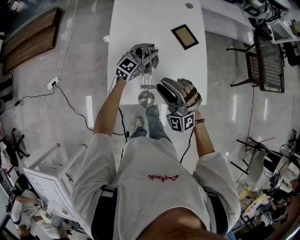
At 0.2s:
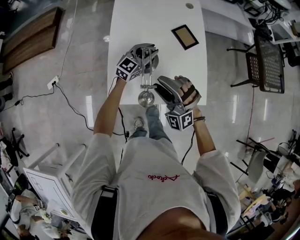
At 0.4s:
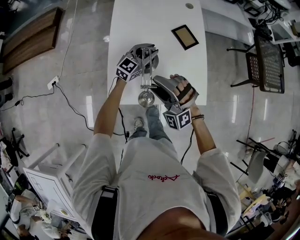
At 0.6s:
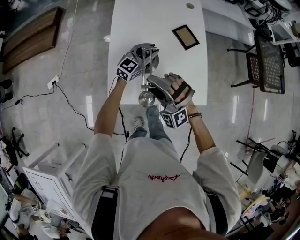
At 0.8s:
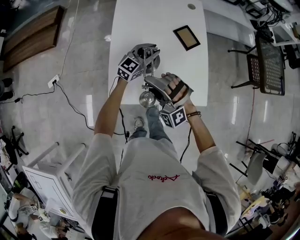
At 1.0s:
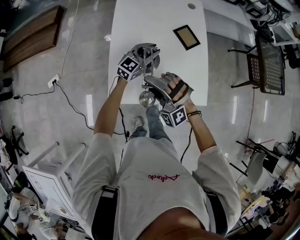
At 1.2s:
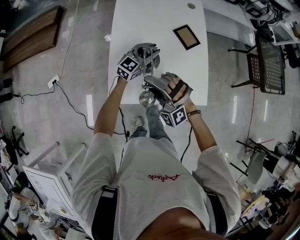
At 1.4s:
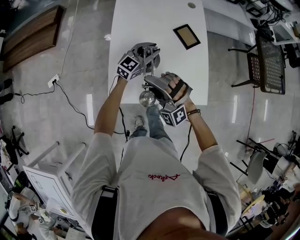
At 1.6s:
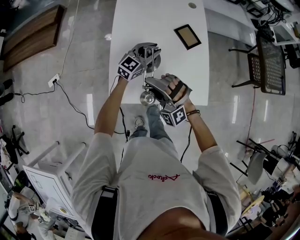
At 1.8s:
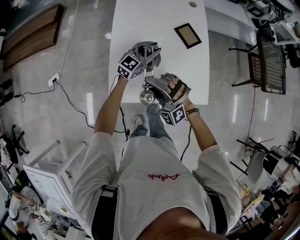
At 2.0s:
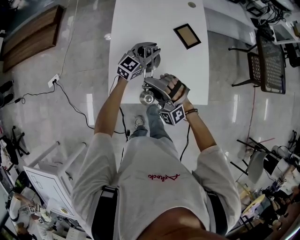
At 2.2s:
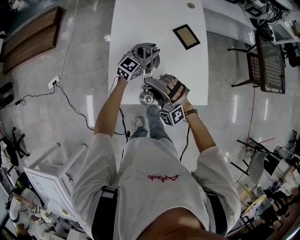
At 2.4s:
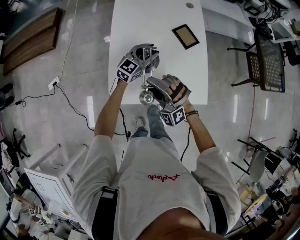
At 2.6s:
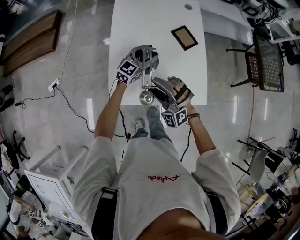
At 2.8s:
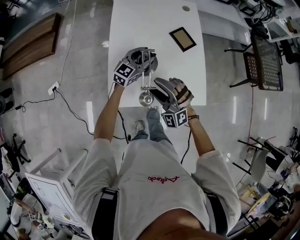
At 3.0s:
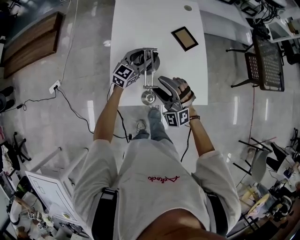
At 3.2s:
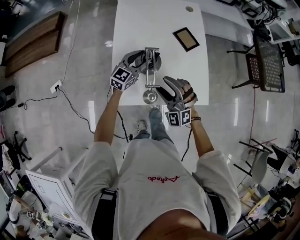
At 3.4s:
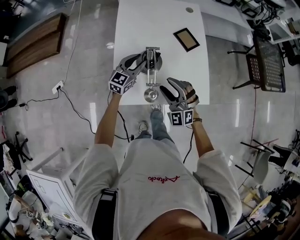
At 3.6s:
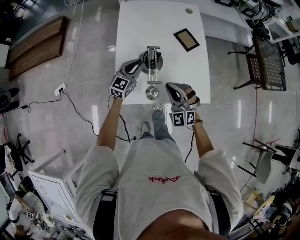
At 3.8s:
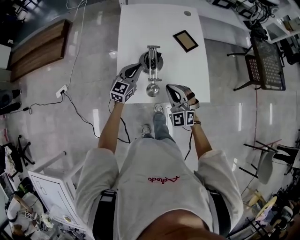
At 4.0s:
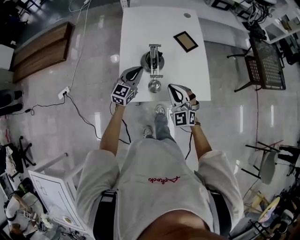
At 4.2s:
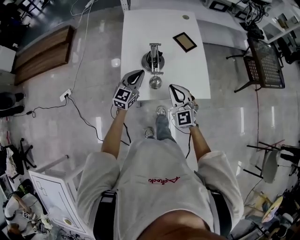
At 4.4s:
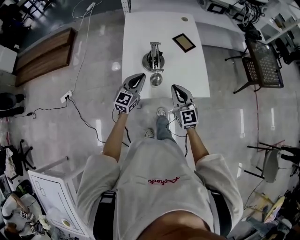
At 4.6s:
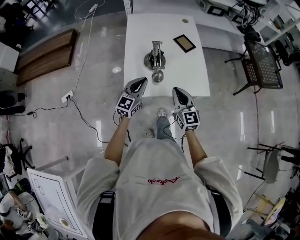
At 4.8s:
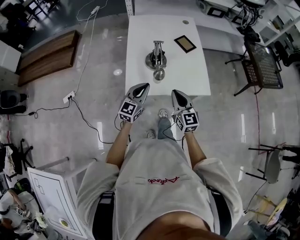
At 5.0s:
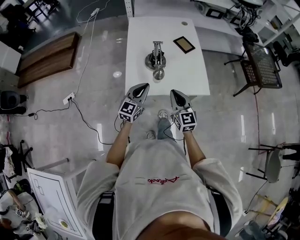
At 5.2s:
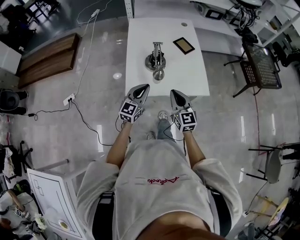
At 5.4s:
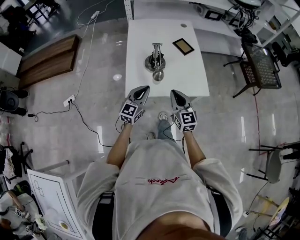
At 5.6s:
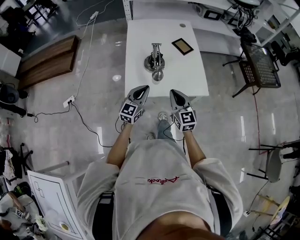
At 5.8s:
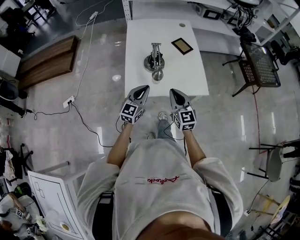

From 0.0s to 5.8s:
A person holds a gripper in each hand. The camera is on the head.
From 0.0s to 1.4s: The right gripper moves to the left, roughly 5 cm.
From 1.4s to 2.8s: There are only small adjustments of the grippers.
From 2.8s to 4.4s: The left gripper is displaced backward by approximately 20 cm, and closes its fingers; the right gripper goes approximately 10 cm backward and to the right, rotates around the line of its fingers by some 60 degrees, clockwise from behind, and closes up.
From 4.4s to 5.8s: The left gripper is displaced backward by some 10 cm.

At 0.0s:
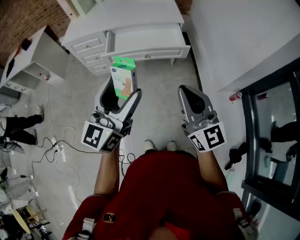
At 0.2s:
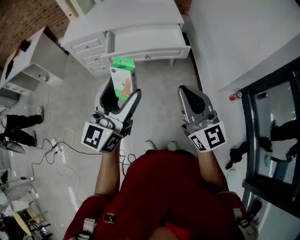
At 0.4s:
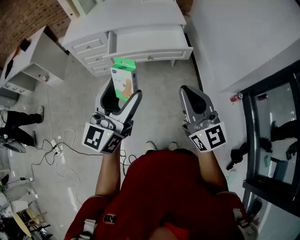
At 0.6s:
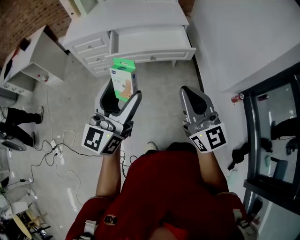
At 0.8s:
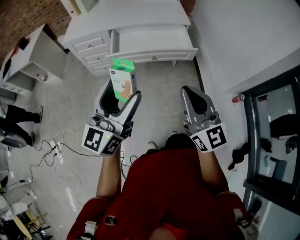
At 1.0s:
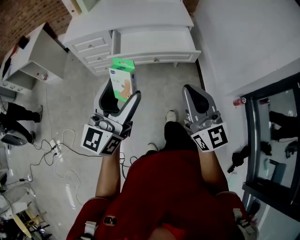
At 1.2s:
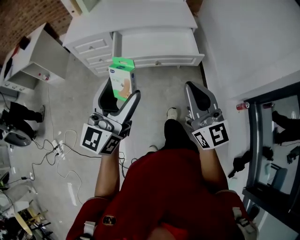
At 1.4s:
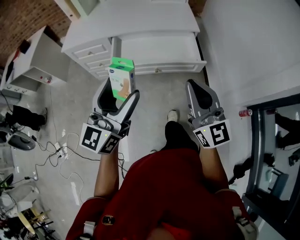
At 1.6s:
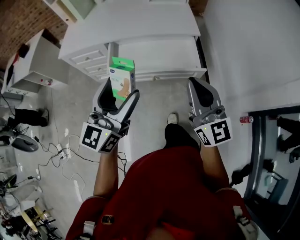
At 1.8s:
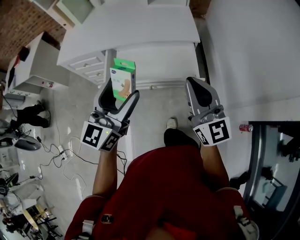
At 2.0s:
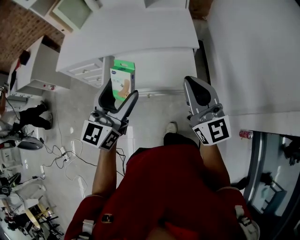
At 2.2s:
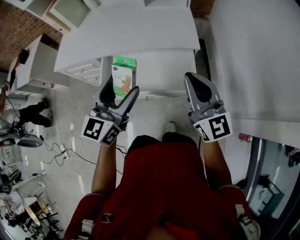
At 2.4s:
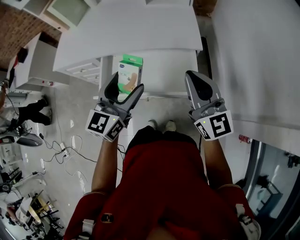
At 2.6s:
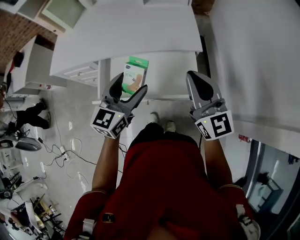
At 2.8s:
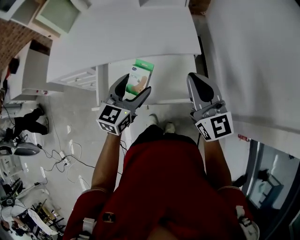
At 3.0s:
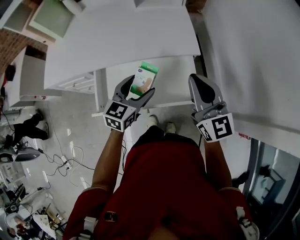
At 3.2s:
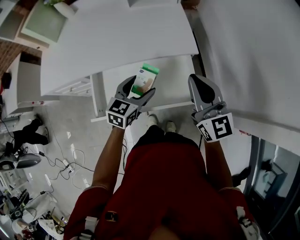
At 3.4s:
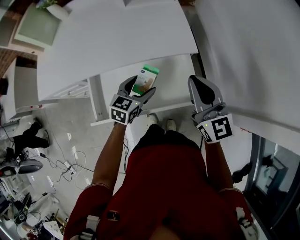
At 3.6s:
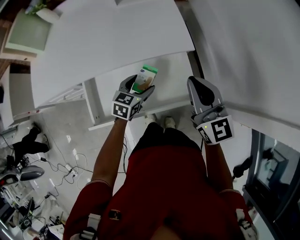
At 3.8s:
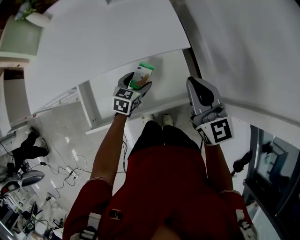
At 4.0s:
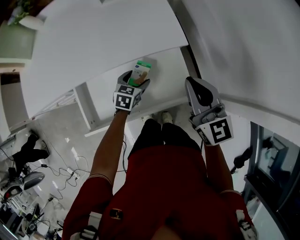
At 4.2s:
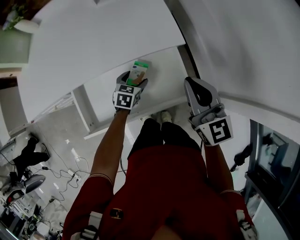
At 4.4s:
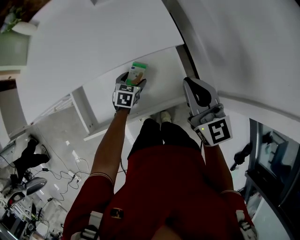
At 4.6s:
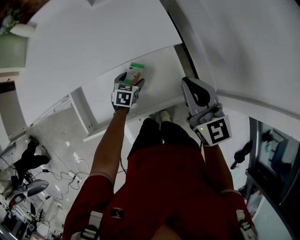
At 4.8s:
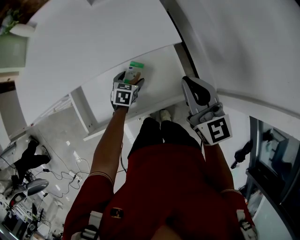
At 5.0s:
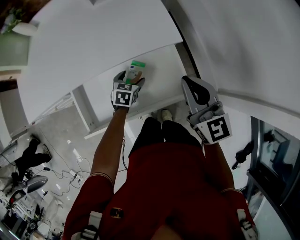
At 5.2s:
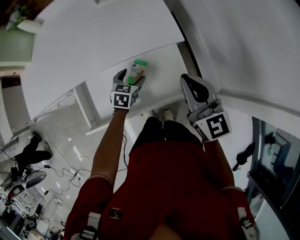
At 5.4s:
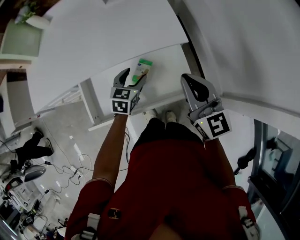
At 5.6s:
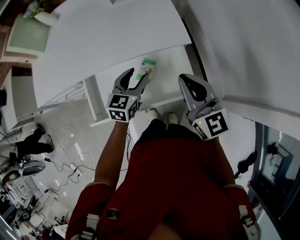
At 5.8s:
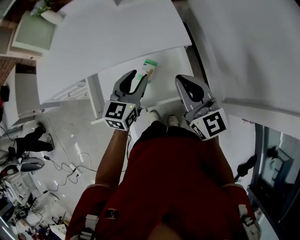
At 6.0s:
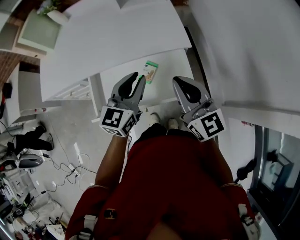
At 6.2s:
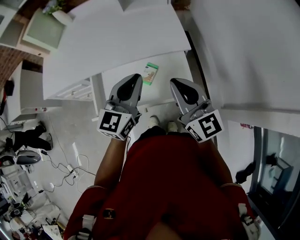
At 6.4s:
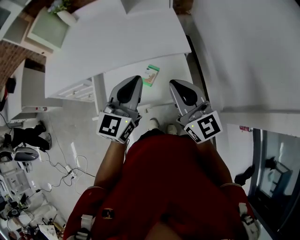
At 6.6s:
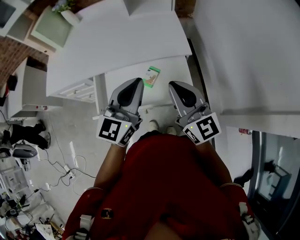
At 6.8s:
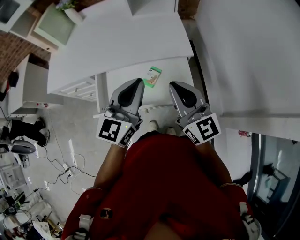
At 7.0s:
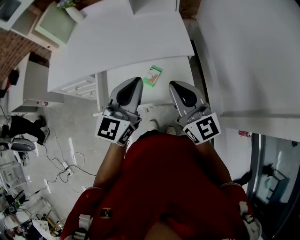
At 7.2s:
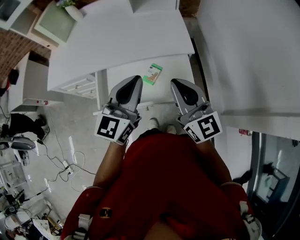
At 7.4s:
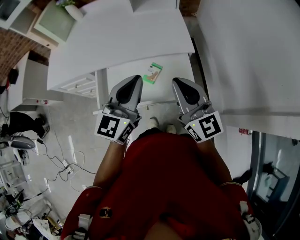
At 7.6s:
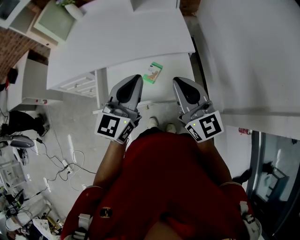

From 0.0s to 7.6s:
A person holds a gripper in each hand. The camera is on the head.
From 0.0s to 1.6s: Both grippers move forward, approximately 25 cm.
From 1.6s to 3.0s: The left gripper heads forward and downward, covering about 35 cm, and turns by approximately 30 degrees, while the right gripper goes some 25 cm forward.
From 3.0s to 4.6s: The right gripper heads downward, covering some 5 cm. The left gripper shifts about 25 cm downward, and turns by some 30 degrees.
From 4.6s to 6.0s: The left gripper travels upward by about 30 cm, tips its fingers upward by roughly 40 degrees, and closes. The right gripper goes some 5 cm backward.
From 6.0s to 7.6s: The left gripper goes about 10 cm upward and backward.

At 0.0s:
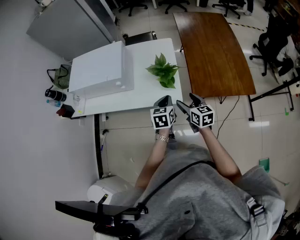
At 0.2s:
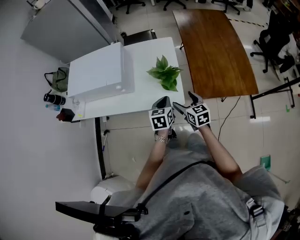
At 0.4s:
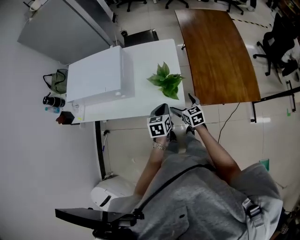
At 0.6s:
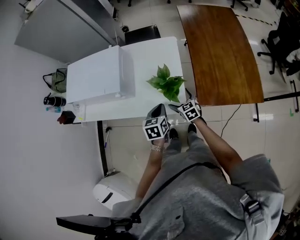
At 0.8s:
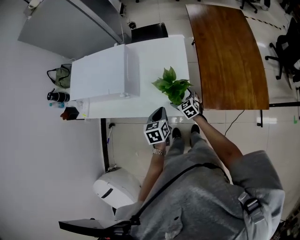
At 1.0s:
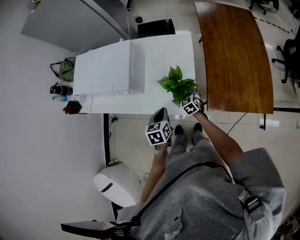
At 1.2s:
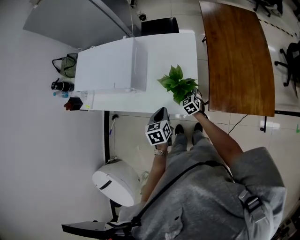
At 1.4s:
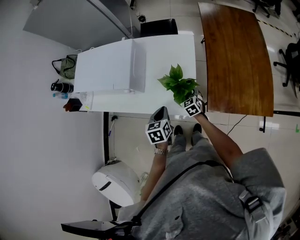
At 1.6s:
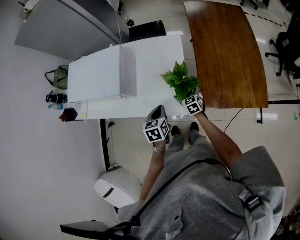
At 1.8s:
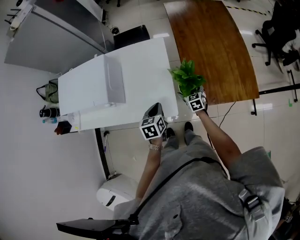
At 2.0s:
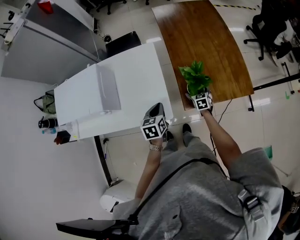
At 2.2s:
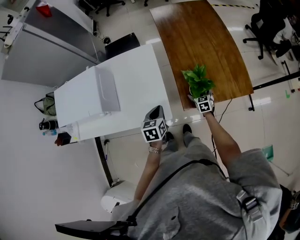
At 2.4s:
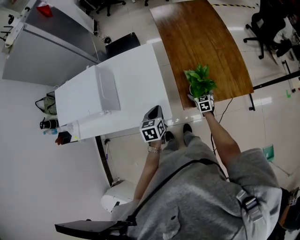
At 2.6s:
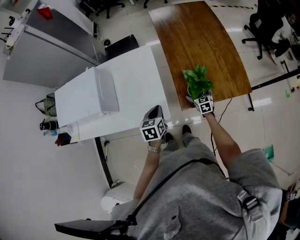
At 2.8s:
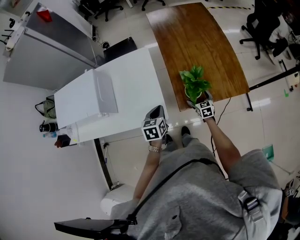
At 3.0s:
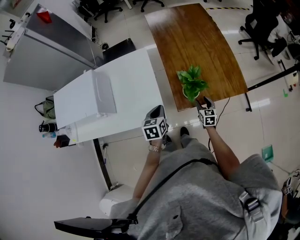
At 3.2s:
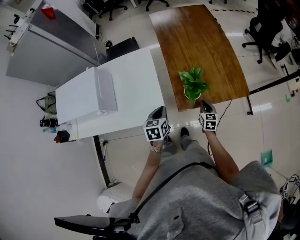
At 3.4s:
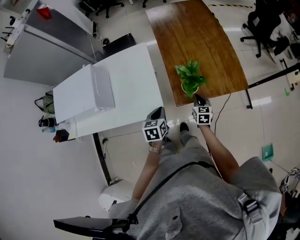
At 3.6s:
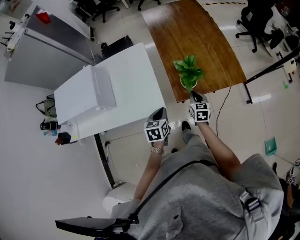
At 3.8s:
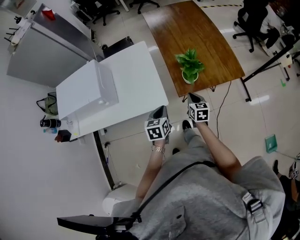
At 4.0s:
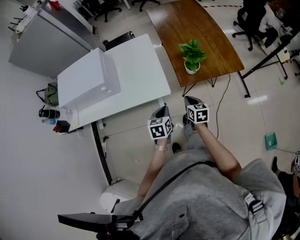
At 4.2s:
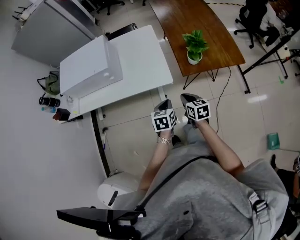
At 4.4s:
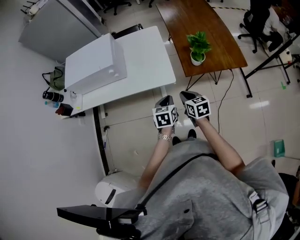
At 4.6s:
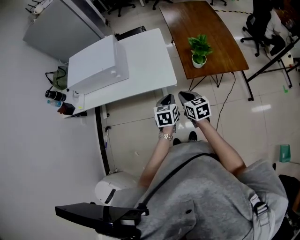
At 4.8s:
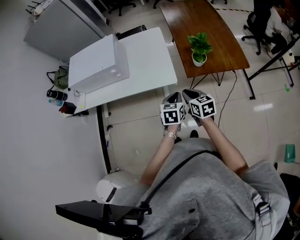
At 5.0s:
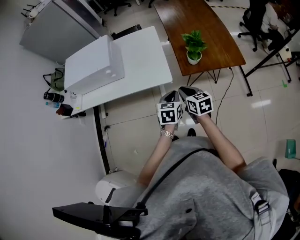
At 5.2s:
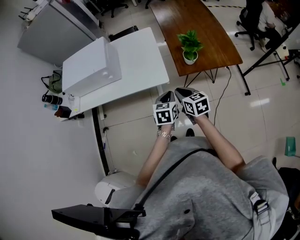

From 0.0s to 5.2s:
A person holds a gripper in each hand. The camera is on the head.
From 0.0s to 1.8s: The right gripper heads forward, downward and to the right, covering approximately 30 cm, changes its angle by some 20 degrees, and opens up, while the left gripper is displaced forward by approximately 10 cm.
From 1.8s to 3.4s: The left gripper shifts about 10 cm to the right. The right gripper shifts some 20 cm to the right and backward, swivels approximately 20 degrees, and closes.
From 3.4s to 5.2s: The left gripper travels backward by roughly 20 cm, while the right gripper travels backward, to the left and upward by about 35 cm, and turns by some 30 degrees.

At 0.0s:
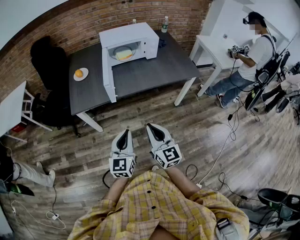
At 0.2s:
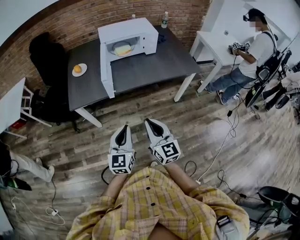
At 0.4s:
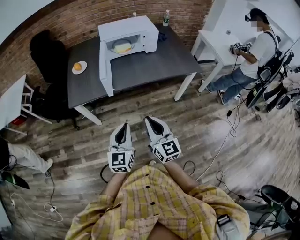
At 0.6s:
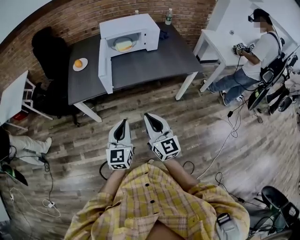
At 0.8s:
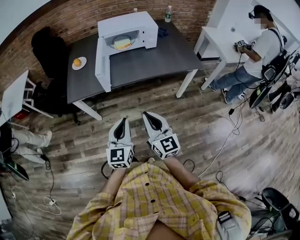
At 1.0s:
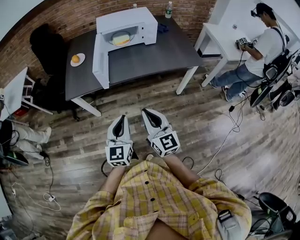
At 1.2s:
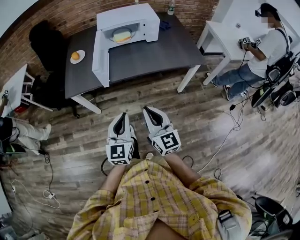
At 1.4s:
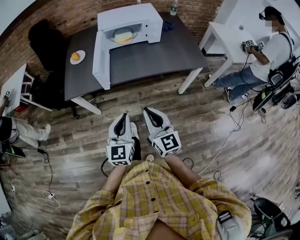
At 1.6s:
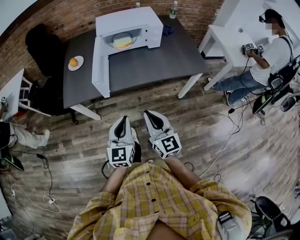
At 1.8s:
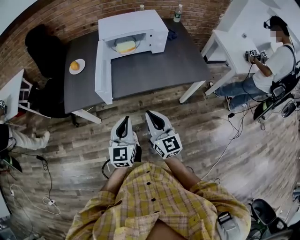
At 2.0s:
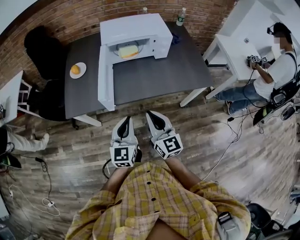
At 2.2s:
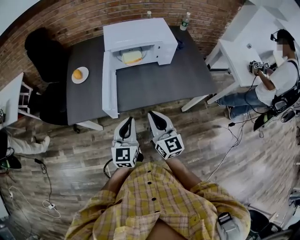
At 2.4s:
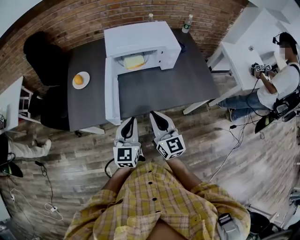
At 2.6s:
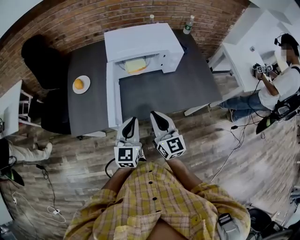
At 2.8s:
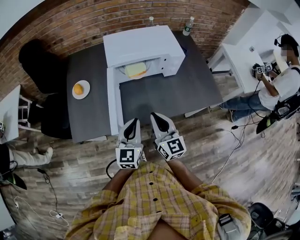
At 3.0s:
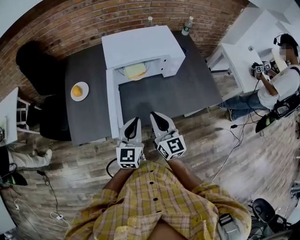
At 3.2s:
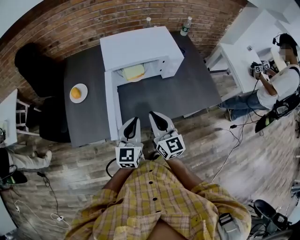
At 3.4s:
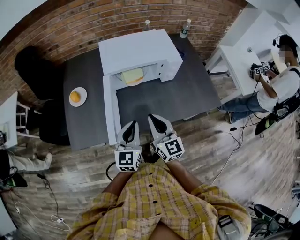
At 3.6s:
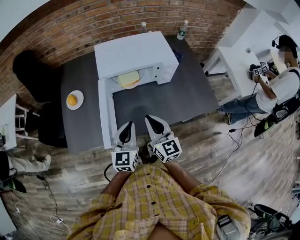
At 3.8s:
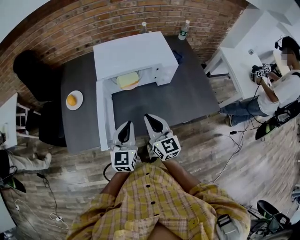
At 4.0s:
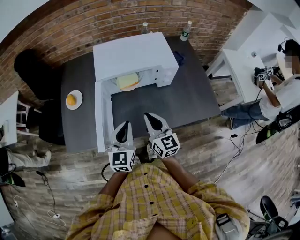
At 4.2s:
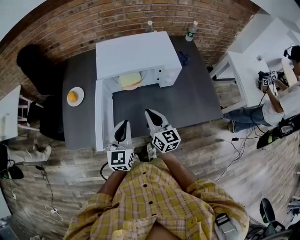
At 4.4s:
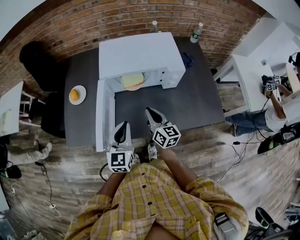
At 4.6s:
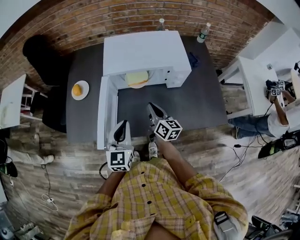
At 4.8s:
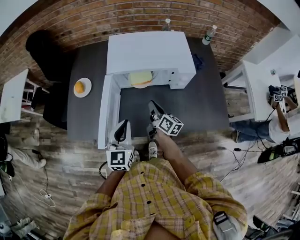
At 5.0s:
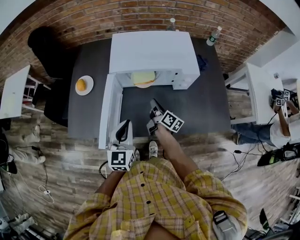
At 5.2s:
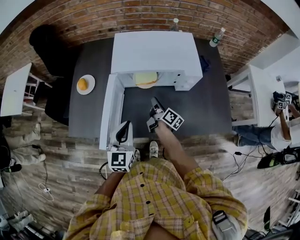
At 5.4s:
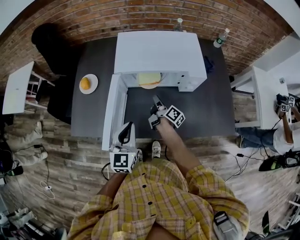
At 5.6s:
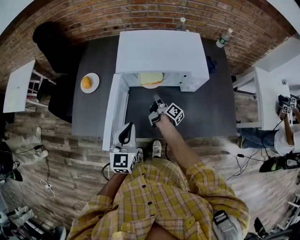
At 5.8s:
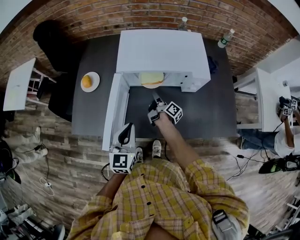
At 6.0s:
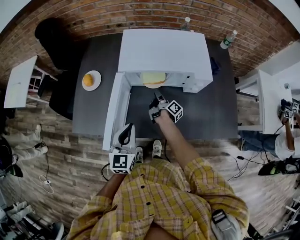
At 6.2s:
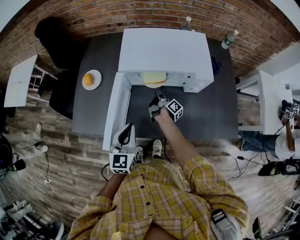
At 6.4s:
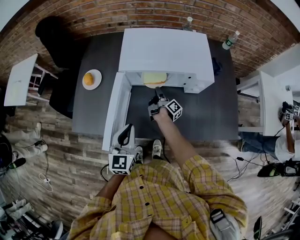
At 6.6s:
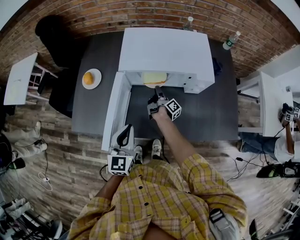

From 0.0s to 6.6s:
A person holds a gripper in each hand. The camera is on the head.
From 0.0s to 1.6s: Both grippers travel together forward and to the right, some 10 cm.
From 1.6s to 3.2s: Both grippers travel together forward, approximately 30 cm.
From 3.2s to 5.0s: The right gripper is displaced forward and downward by some 25 cm, and rolls clockwise, seen from behind, by about 60 degrees, while the left gripper heads forward, covering about 5 cm.
From 5.0s to 6.6s: The right gripper shifts roughly 15 cm forward and downward, rotates some 30 degrees, and opens its fingers.
